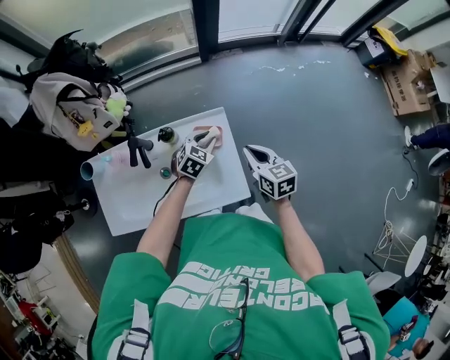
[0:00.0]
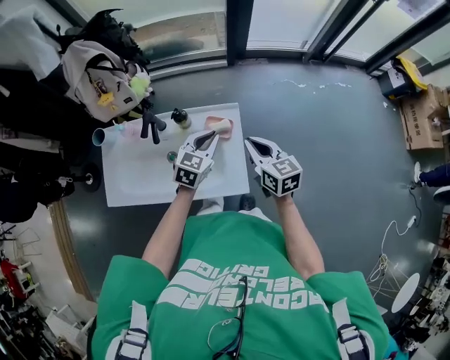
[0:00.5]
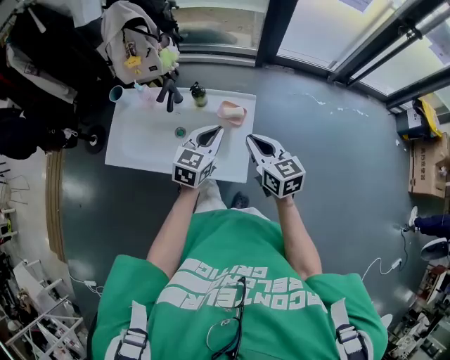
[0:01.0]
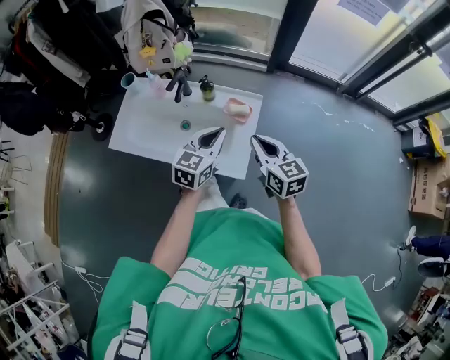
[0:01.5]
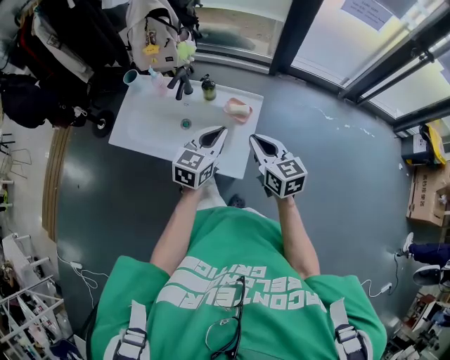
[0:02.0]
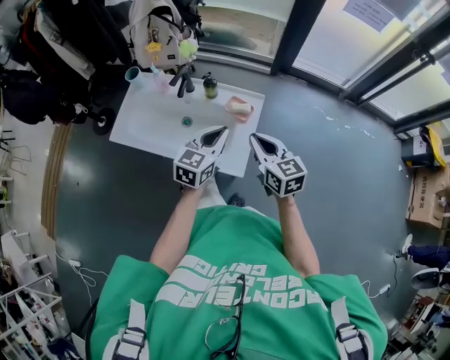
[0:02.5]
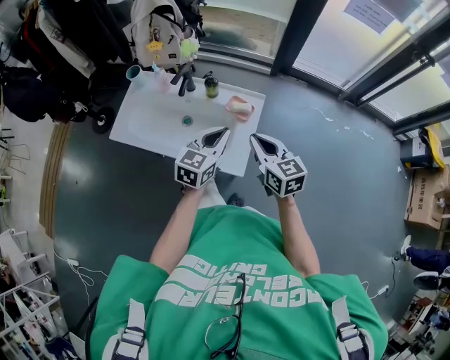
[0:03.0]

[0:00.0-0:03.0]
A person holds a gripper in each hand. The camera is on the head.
0.0 to 1.5 s: The left gripper moves upward, some 20 cm, changes its angle by approximately 50 degrees, and closes up. Meanwhile the right gripper changes place by about 15 cm, and turns by about 30 degrees.
1.5 to 3.0 s: The grippers stay close to where they were, moving slightly.

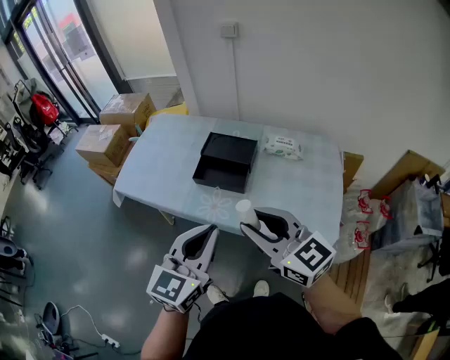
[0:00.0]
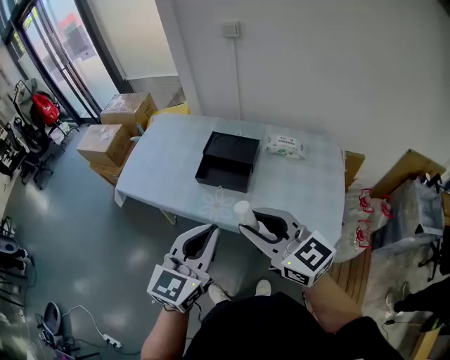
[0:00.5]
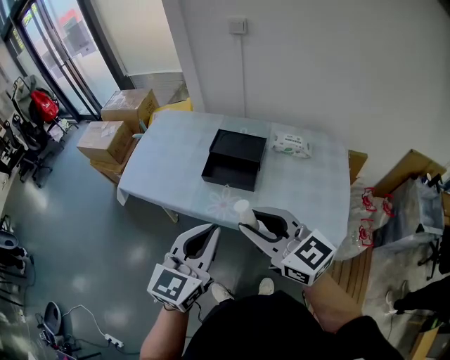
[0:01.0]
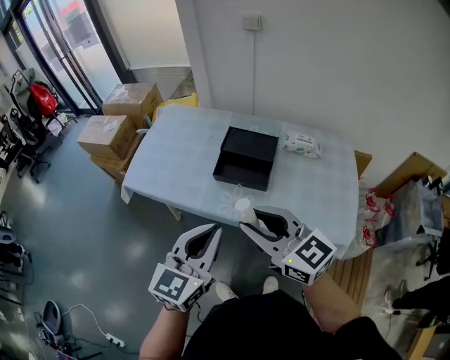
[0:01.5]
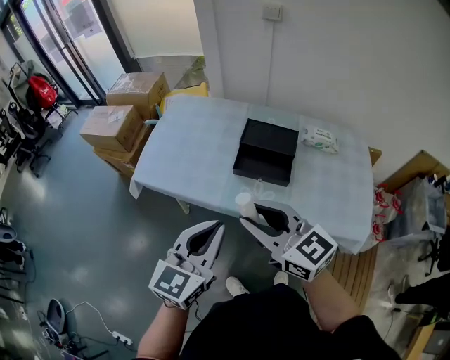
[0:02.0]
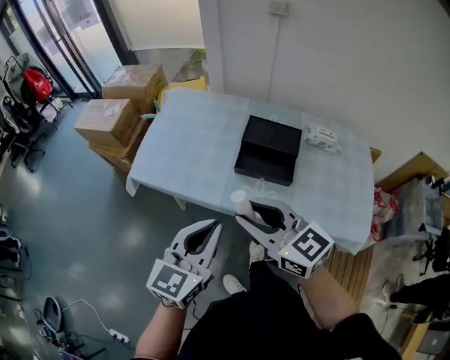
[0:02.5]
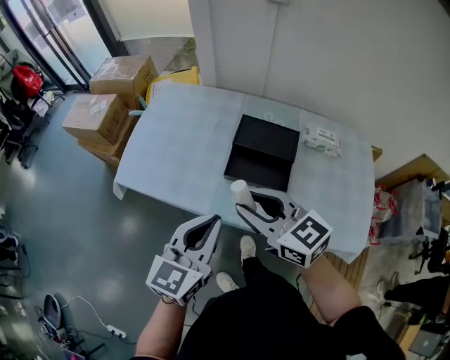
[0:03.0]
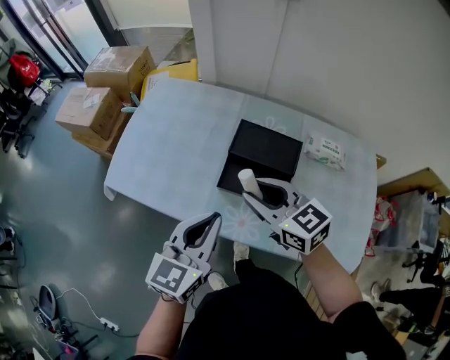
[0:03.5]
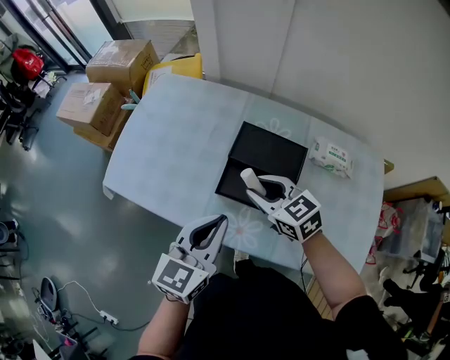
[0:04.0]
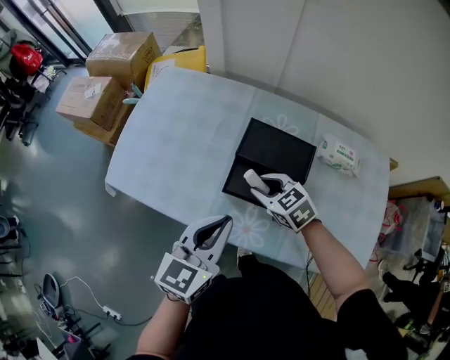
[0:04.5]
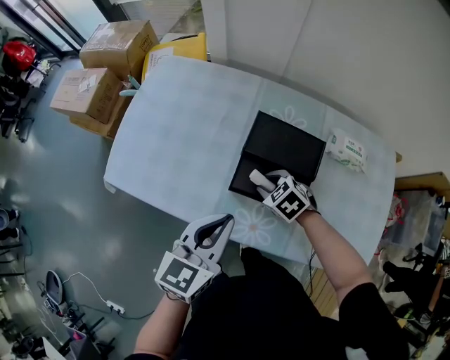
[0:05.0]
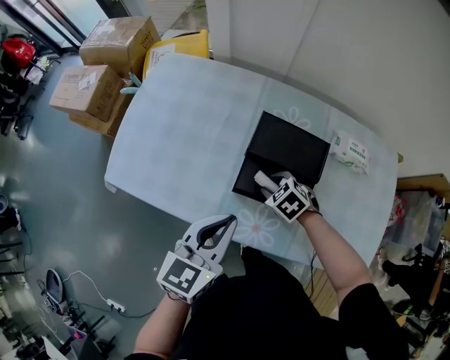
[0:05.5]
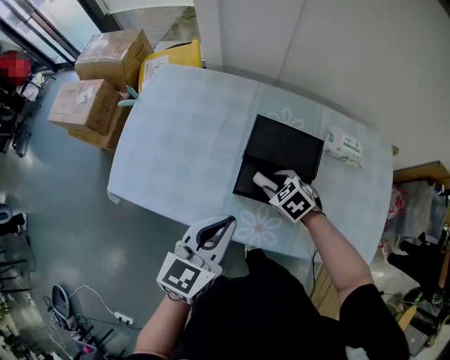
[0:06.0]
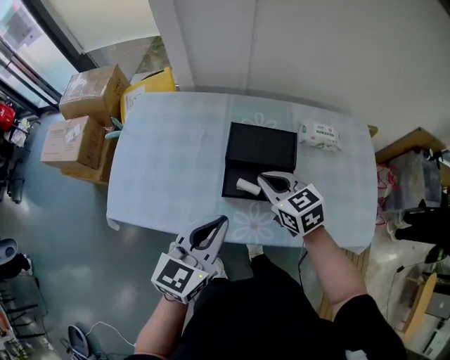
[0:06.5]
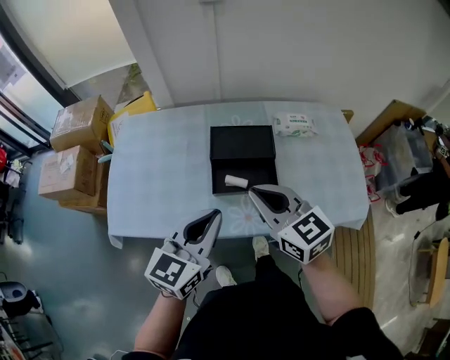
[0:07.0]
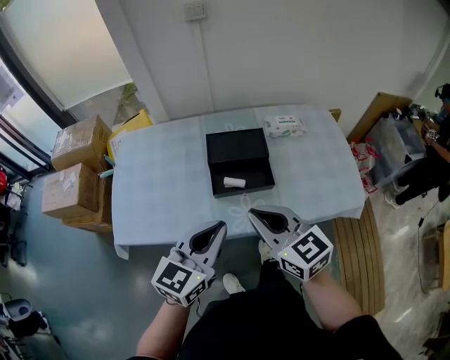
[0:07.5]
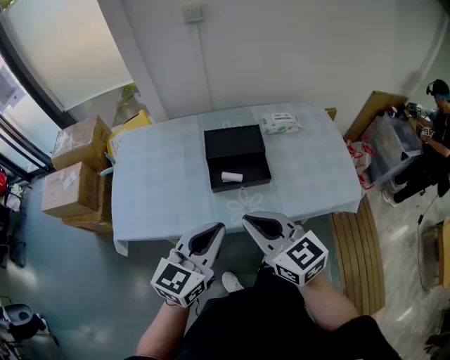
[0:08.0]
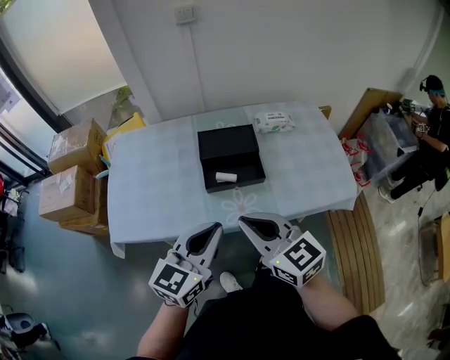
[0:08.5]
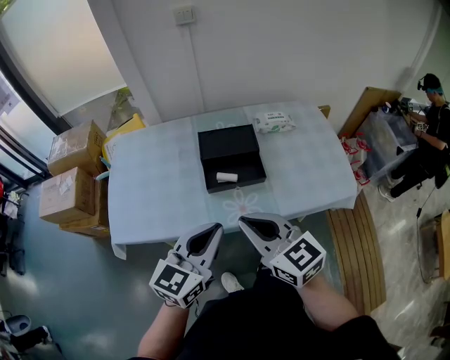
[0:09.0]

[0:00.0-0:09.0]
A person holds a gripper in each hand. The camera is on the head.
0.0 to 2.0 s: The left gripper is displaced to the left by approximately 15 cm. The right gripper travels to the left and forward by some 20 cm.
2.0 to 4.5 s: The right gripper moves forward and downward, roughly 35 cm, and angles its fingers downward, by roughly 40 degrees. Meanwhile the left gripper shifts about 25 cm forward, downward and to the right.
4.5 to 7.0 s: The right gripper travels upward by about 20 cm, swivels about 40 degrees, and closes up. The left gripper moves upward, about 5 cm, and changes its angle by roughly 20 degrees.
7.0 to 9.0 s: Both grippers travel together backward, approximately 10 cm.

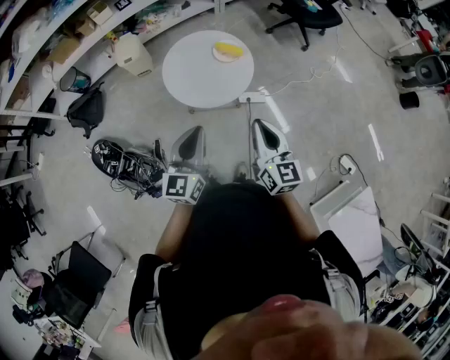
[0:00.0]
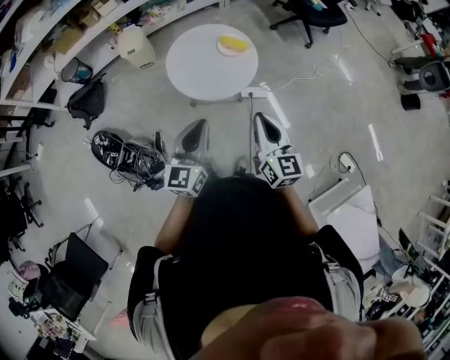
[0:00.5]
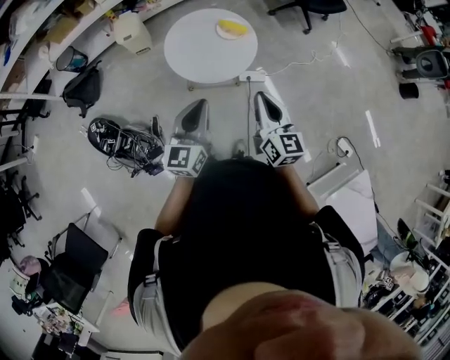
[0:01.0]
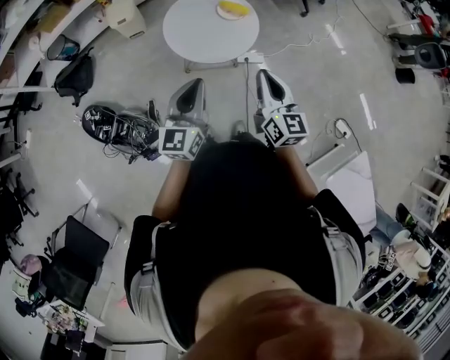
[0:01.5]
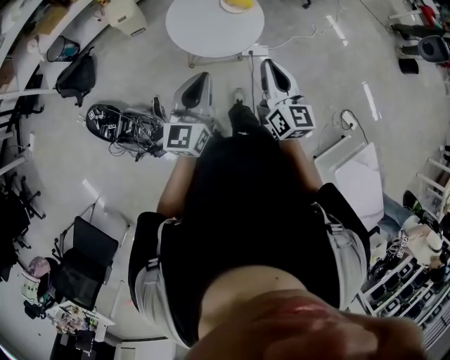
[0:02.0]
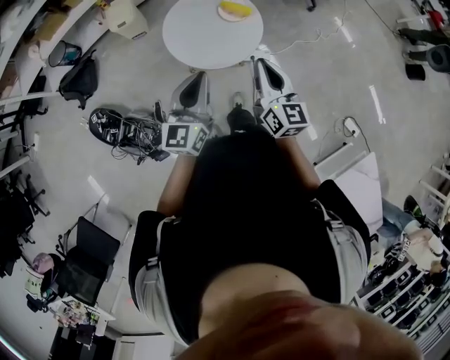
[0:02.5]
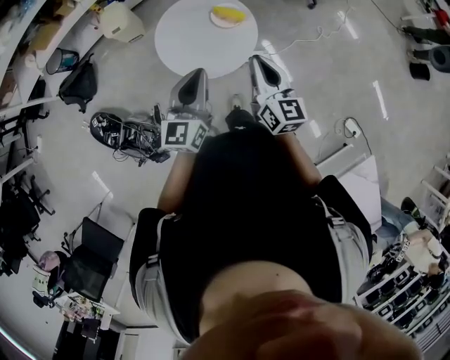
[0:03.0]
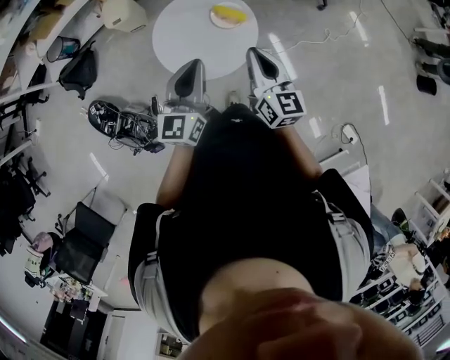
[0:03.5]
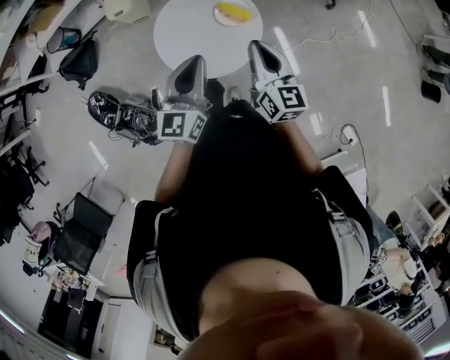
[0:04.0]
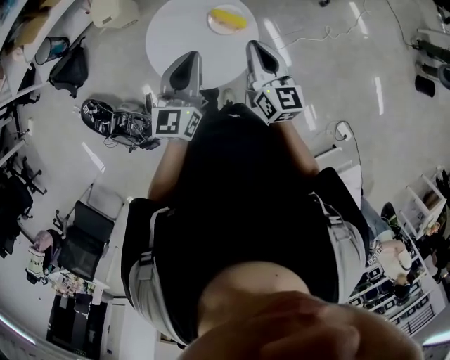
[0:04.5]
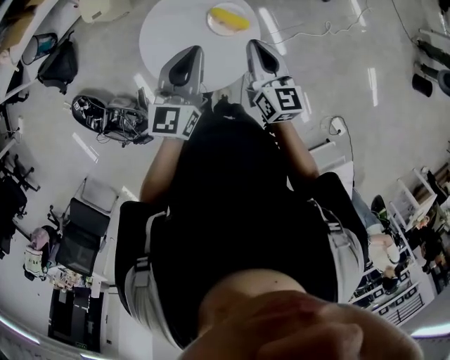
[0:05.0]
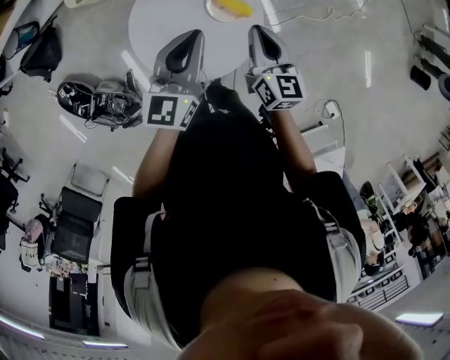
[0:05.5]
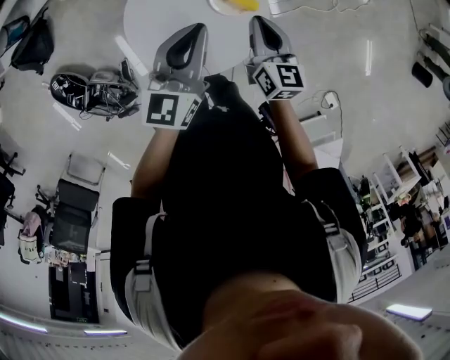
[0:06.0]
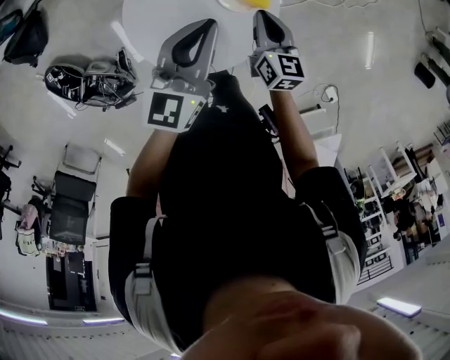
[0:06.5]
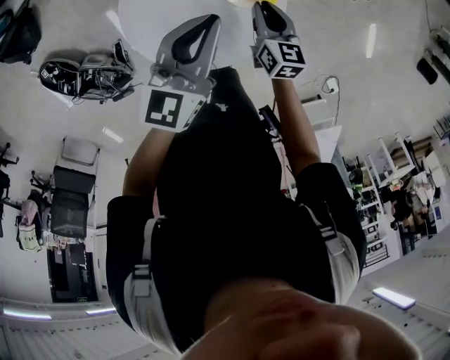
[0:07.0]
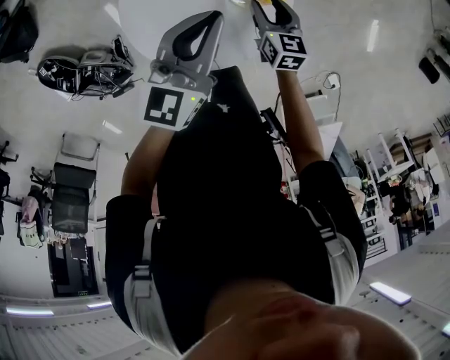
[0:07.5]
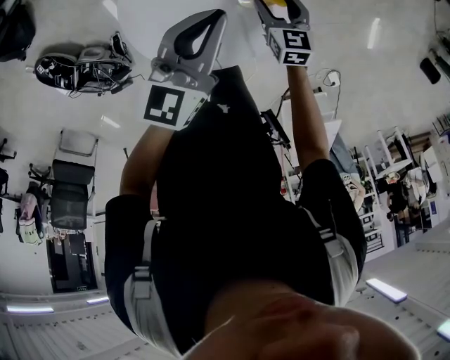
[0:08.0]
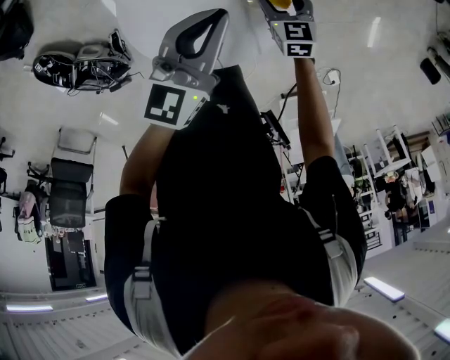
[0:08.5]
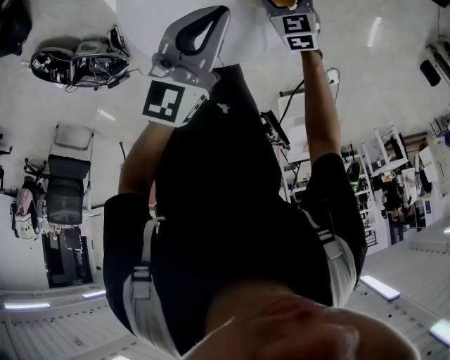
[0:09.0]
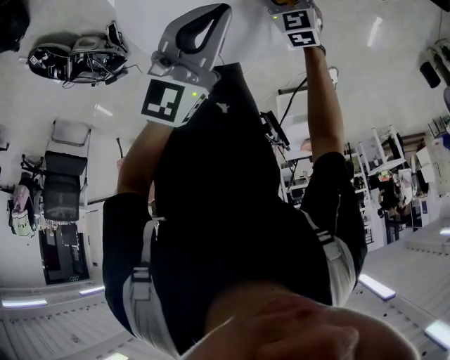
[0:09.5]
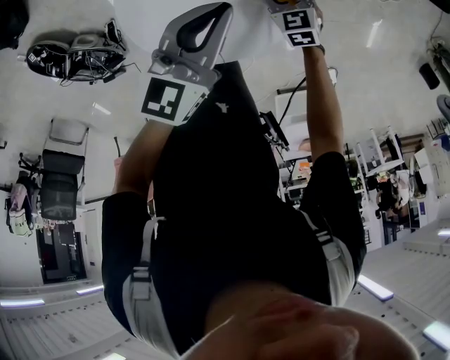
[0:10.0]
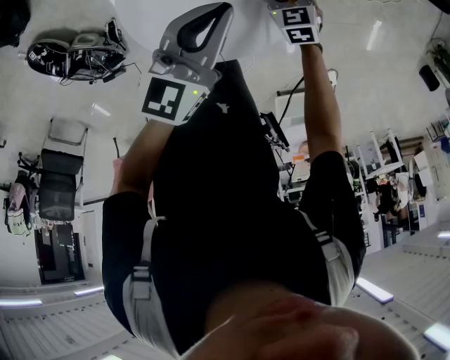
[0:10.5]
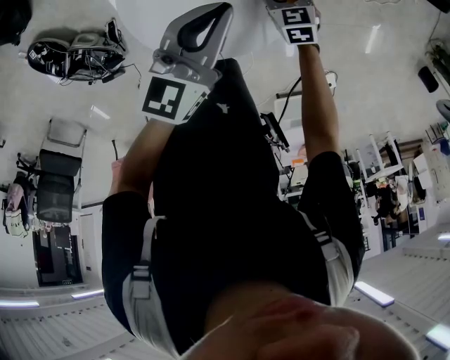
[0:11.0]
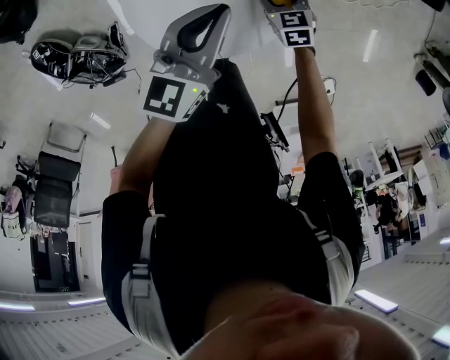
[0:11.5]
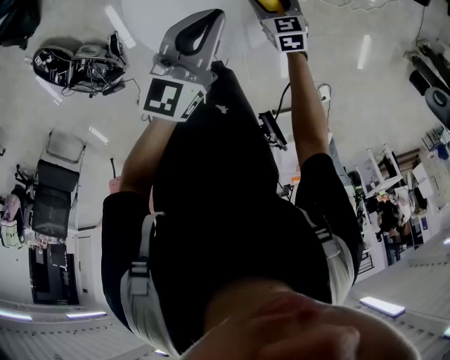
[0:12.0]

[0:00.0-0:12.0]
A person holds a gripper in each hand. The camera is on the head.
0.0 to 2.0 s: The grippers both shift to the left by some 5 cm.
2.0 to 4.0 s: The left gripper moves forward and to the right, roughly 25 cm; the right gripper travels forward by some 25 cm.
4.0 to 6.0 s: The right gripper is displaced downward and forward by roughly 25 cm; the left gripper moves forward and downward, about 20 cm.
6.0 to 8.0 s: The right gripper heads downward, covering some 20 cm, rotates roughly 30 degrees, and opens. The left gripper is displaced downward and forward by some 10 cm.
8.0 to 10.0 s: The right gripper is displaced downward by about 5 cm, and changes its angle by some 30 degrees.
10.0 to 12.0 s: The left gripper is displaced backward and upward by roughly 10 cm. Meanwhile the right gripper shifts some 5 cm upward.

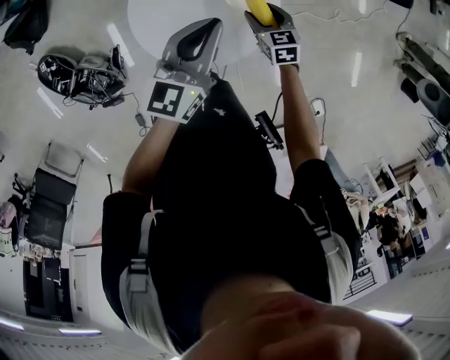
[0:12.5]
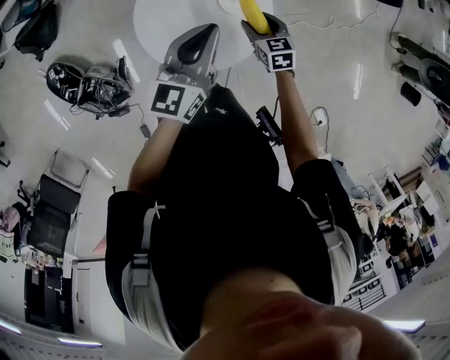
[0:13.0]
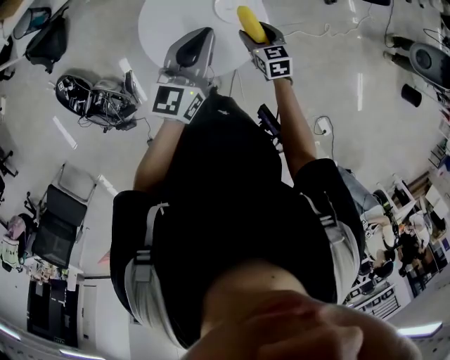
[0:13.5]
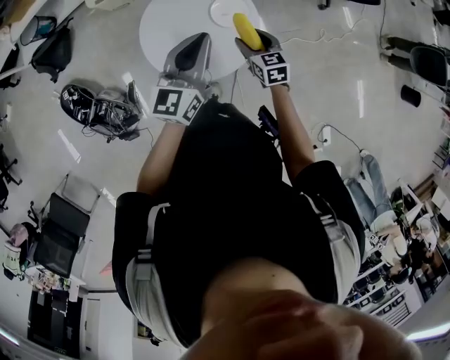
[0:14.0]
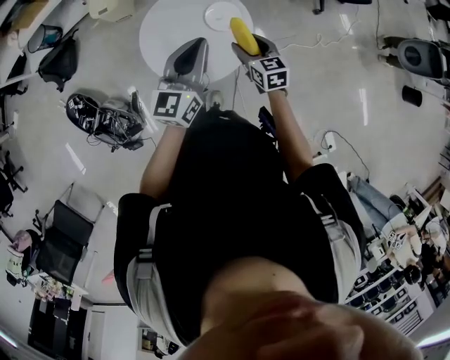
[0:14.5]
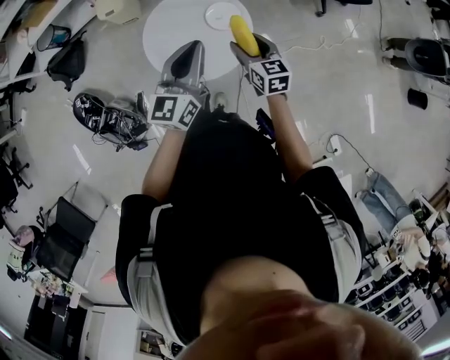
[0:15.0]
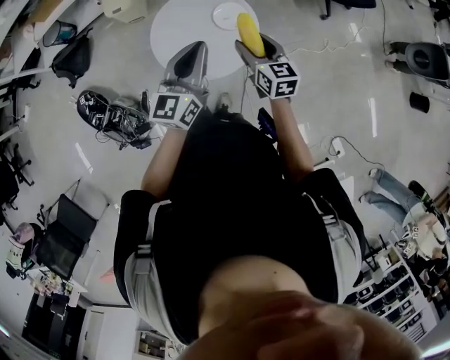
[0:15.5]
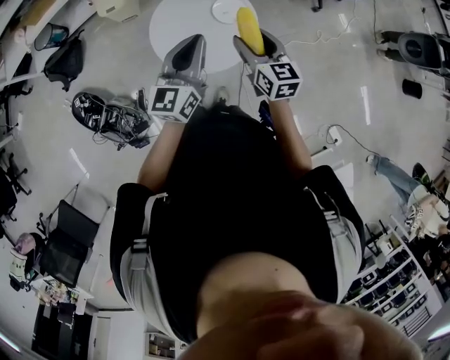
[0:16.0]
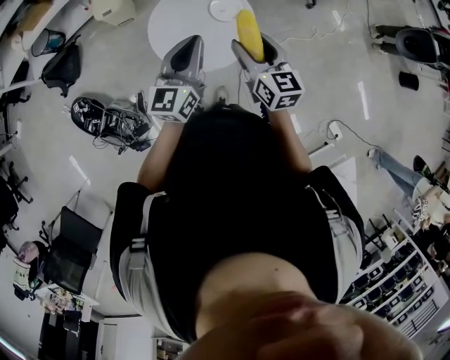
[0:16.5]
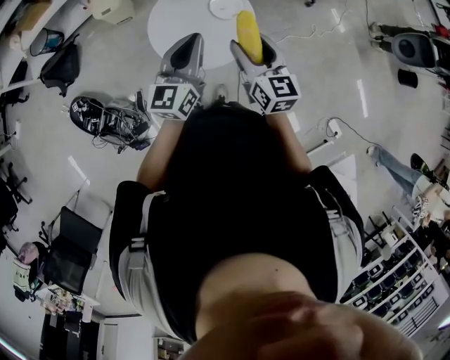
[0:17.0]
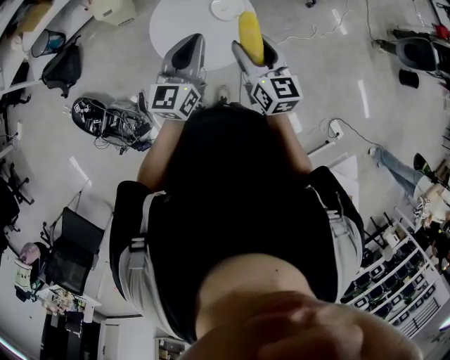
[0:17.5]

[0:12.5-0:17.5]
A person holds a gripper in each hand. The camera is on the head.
12.5 to 15.0 s: The left gripper goes some 20 cm backward and upward. The right gripper is displaced upward and backward by about 25 cm, and rotates some 20 degrees.
15.0 to 17.5 s: The left gripper heads to the left, covering some 5 cm, while the right gripper heads upward, backward and to the left, covering some 15 cm.
